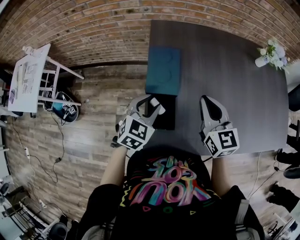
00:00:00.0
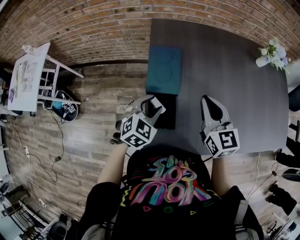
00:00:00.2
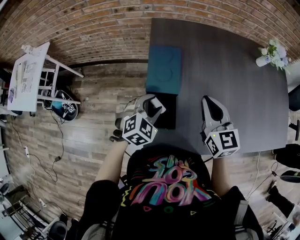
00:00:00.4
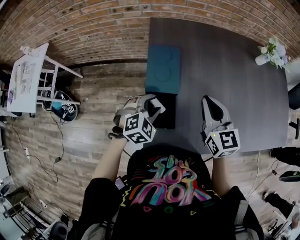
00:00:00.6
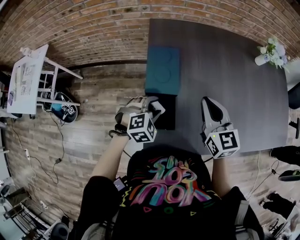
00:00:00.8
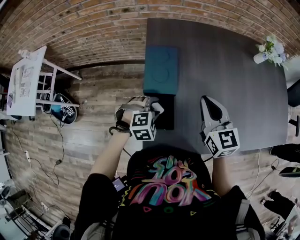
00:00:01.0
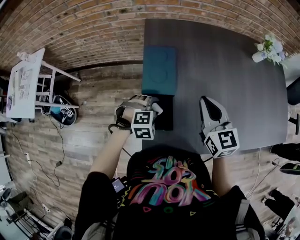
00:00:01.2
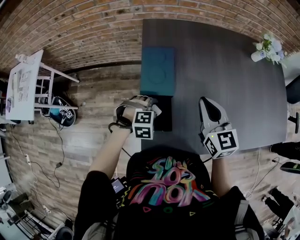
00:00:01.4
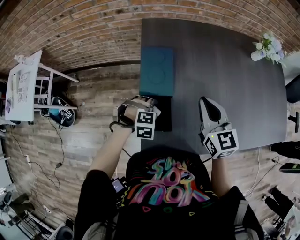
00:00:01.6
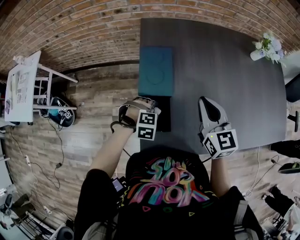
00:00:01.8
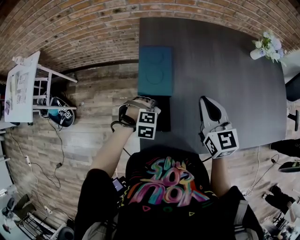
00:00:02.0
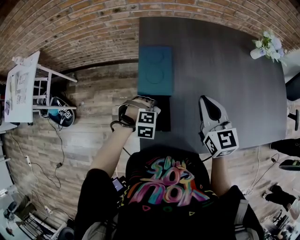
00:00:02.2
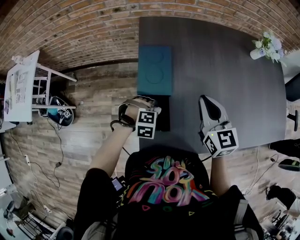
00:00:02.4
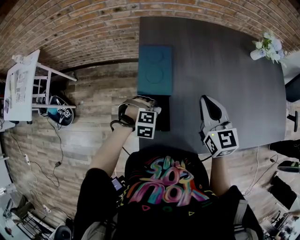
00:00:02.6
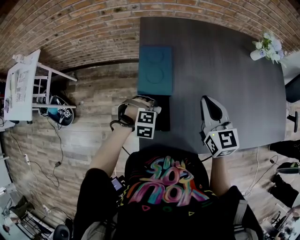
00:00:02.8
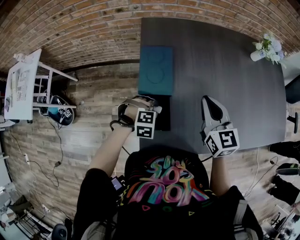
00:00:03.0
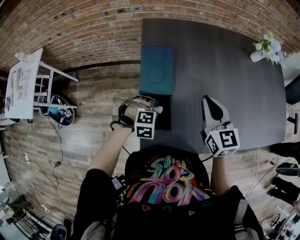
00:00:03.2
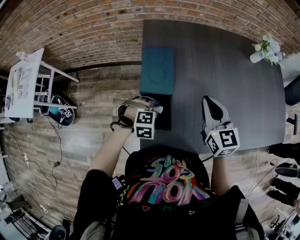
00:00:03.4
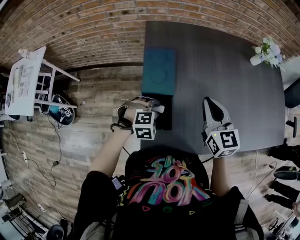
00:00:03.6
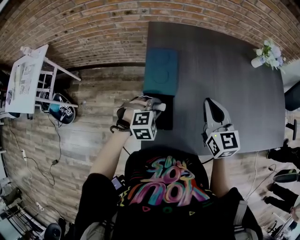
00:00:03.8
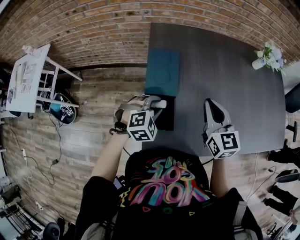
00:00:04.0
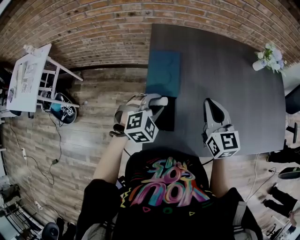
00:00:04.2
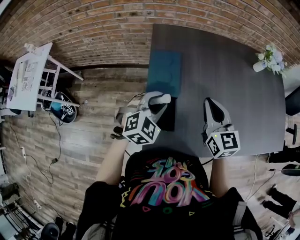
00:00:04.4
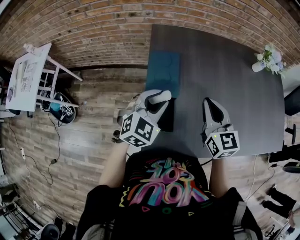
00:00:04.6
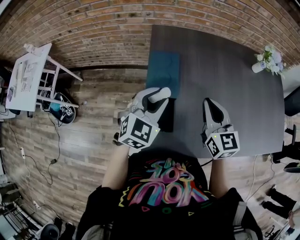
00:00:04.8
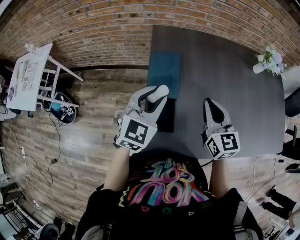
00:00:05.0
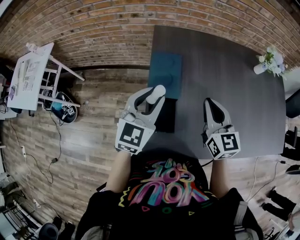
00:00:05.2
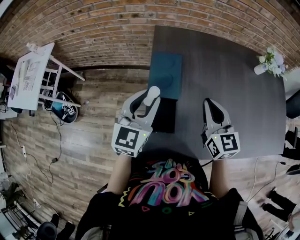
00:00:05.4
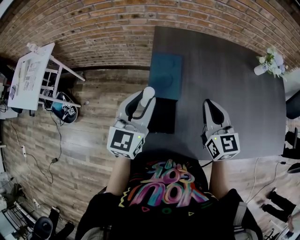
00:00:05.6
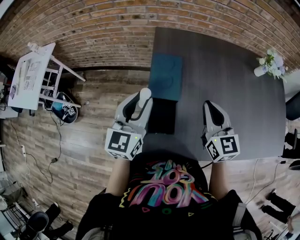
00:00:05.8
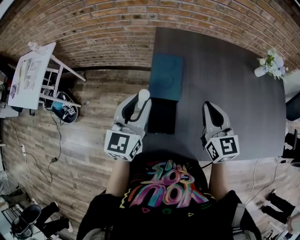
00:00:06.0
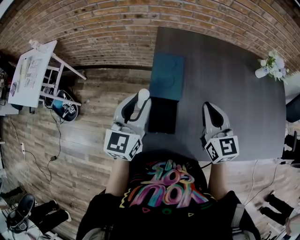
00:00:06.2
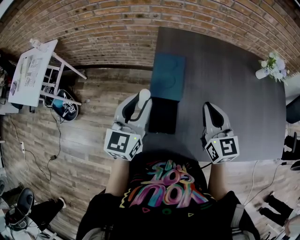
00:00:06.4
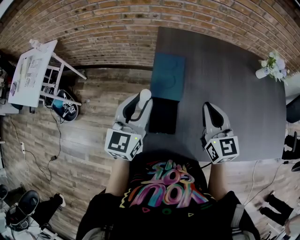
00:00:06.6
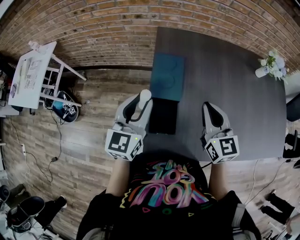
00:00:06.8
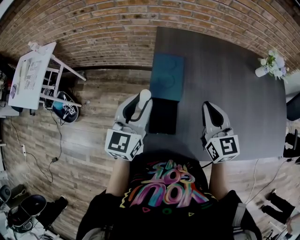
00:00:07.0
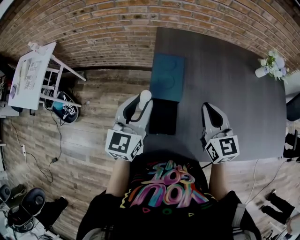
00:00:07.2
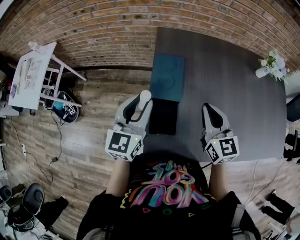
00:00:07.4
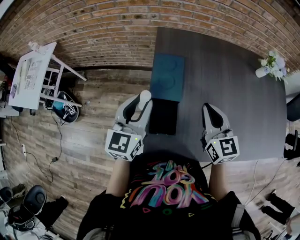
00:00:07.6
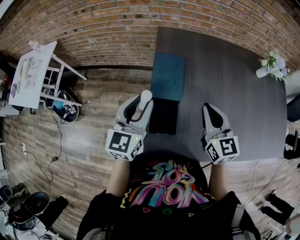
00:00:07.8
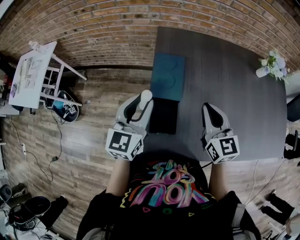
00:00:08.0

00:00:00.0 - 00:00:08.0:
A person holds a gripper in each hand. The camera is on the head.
00:00:00.0 - 00:00:01.6: The left gripper travels downward by some 15 cm, and tips its fingers downward by approximately 40 degrees.
00:00:01.6 - 00:00:03.2: The left gripper closes its fingers.
00:00:03.2 - 00:00:04.8: The left gripper goes approximately 20 cm upward, and angles its fingers upward, by approximately 40 degrees.
00:00:04.8 - 00:00:06.4: The left gripper goes some 10 cm to the left, and changes its angle by about 30 degrees.
00:00:06.4 - 00:00:08.0: Neither gripper changes place.

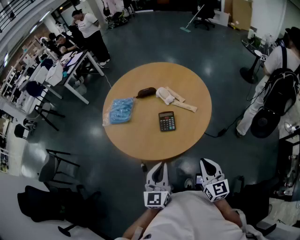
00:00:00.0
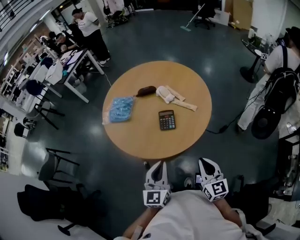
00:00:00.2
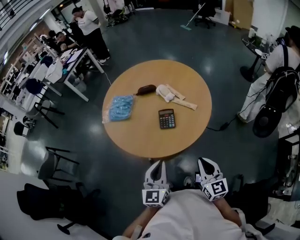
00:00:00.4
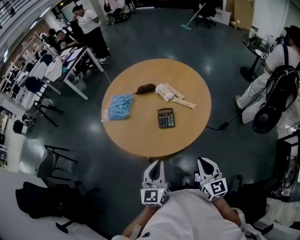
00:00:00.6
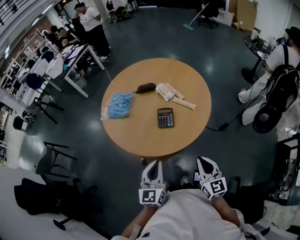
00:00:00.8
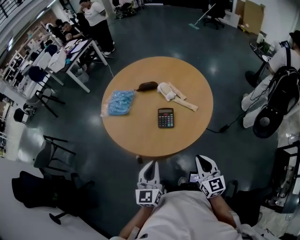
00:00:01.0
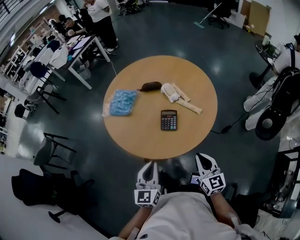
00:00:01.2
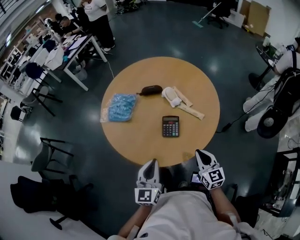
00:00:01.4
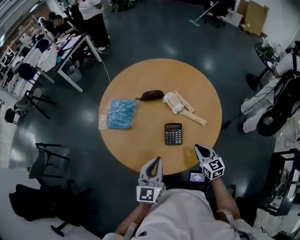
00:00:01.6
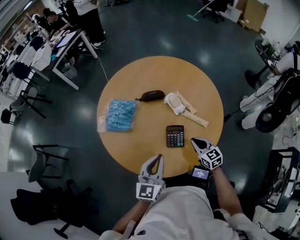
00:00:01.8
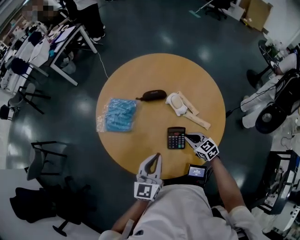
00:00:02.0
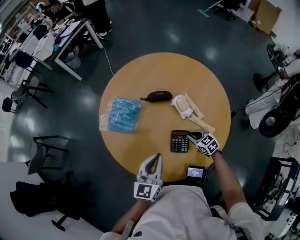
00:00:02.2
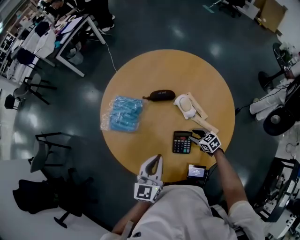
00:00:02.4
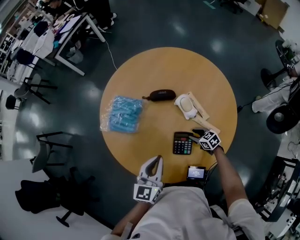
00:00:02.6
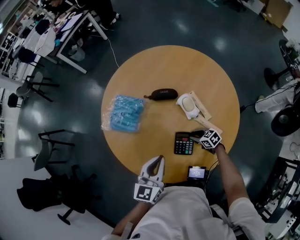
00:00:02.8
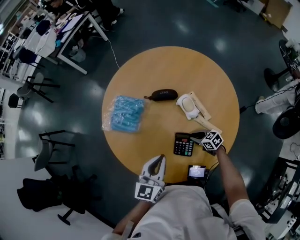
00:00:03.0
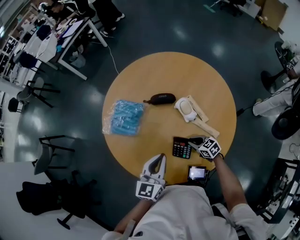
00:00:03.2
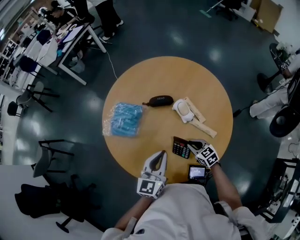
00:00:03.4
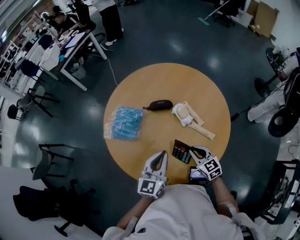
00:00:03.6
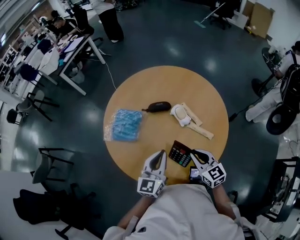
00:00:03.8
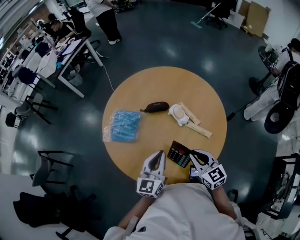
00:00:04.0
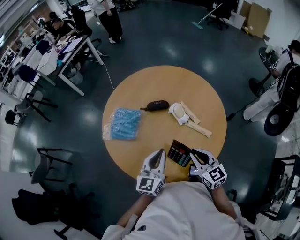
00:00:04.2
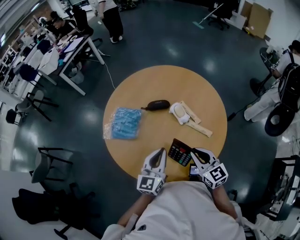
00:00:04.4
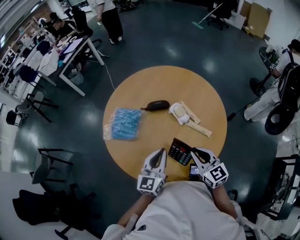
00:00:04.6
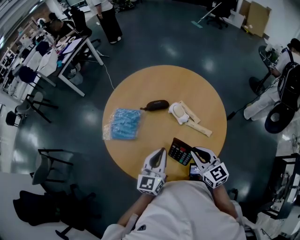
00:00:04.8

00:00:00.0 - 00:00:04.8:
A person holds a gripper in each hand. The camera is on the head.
00:00:00.0 - 00:00:01.6: The right gripper is displaced forward and downward by approximately 25 cm. The left gripper goes some 15 cm forward.
00:00:01.6 - 00:00:03.2: The left gripper changes place by roughly 15 cm; the right gripper shifts by roughly 20 cm, turns by approximately 40 degrees, and opens, then closes again.
00:00:03.2 - 00:00:04.8: The right gripper moves upward, roughly 25 cm, and turns by some 40 degrees.

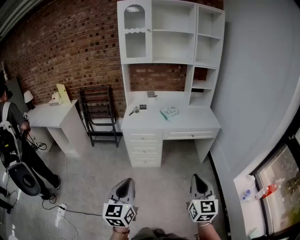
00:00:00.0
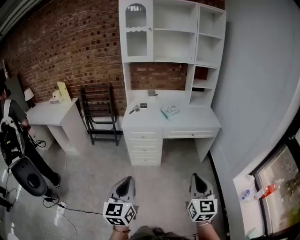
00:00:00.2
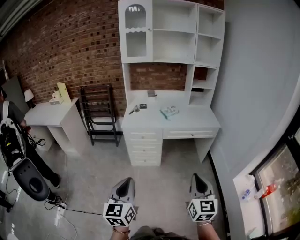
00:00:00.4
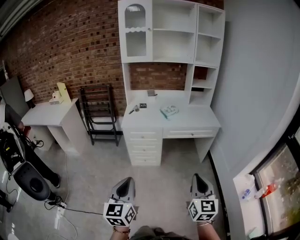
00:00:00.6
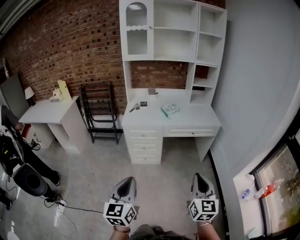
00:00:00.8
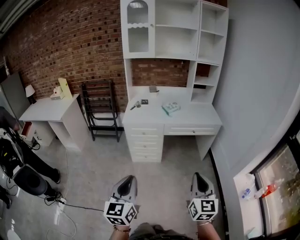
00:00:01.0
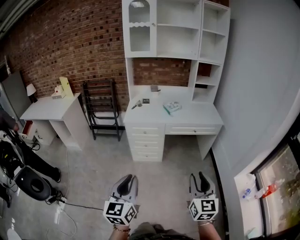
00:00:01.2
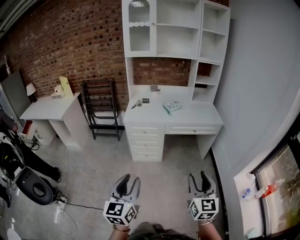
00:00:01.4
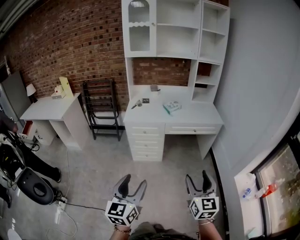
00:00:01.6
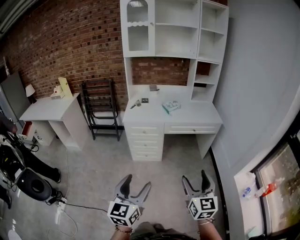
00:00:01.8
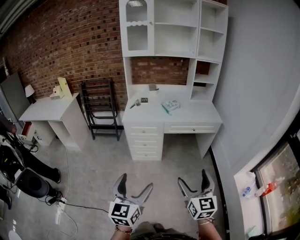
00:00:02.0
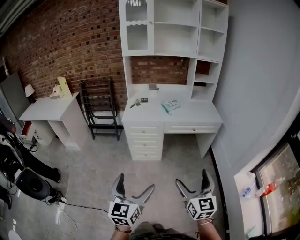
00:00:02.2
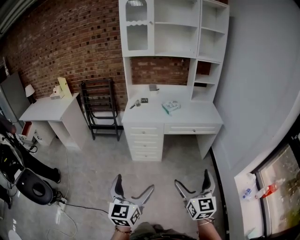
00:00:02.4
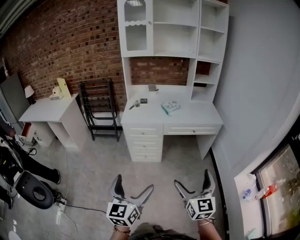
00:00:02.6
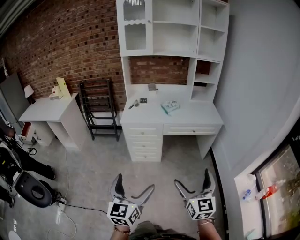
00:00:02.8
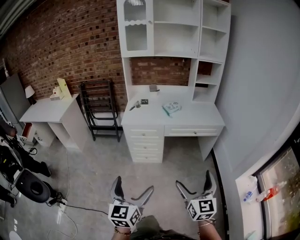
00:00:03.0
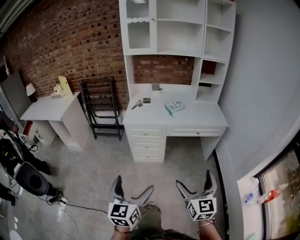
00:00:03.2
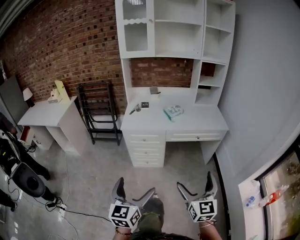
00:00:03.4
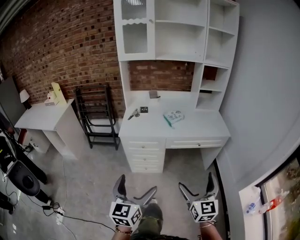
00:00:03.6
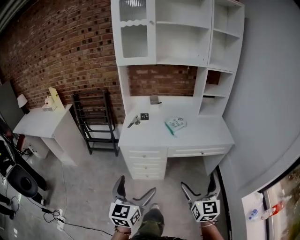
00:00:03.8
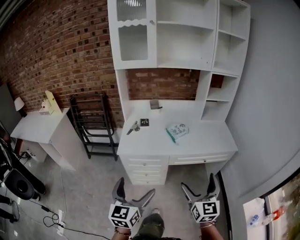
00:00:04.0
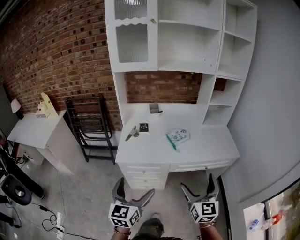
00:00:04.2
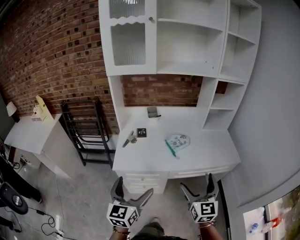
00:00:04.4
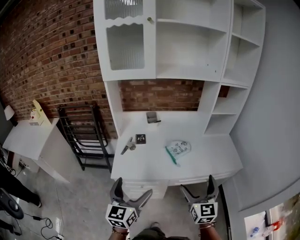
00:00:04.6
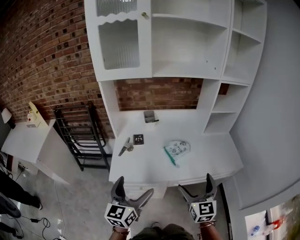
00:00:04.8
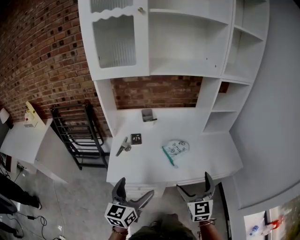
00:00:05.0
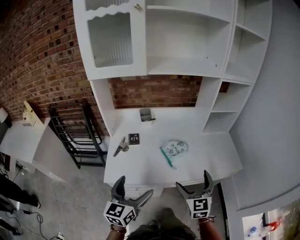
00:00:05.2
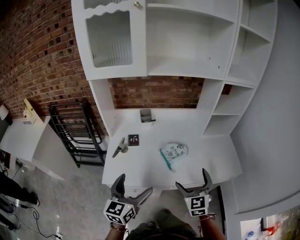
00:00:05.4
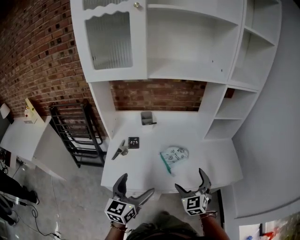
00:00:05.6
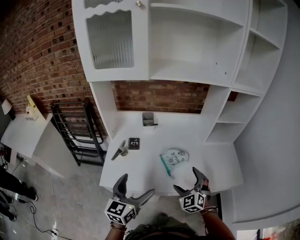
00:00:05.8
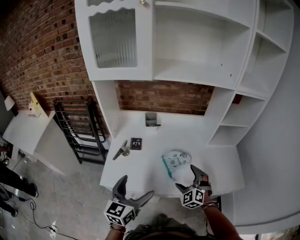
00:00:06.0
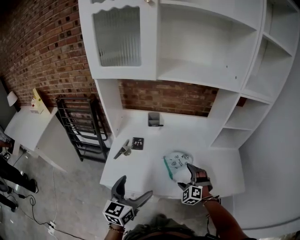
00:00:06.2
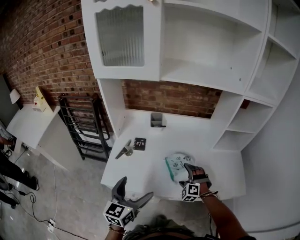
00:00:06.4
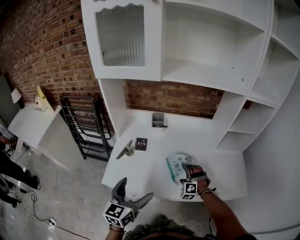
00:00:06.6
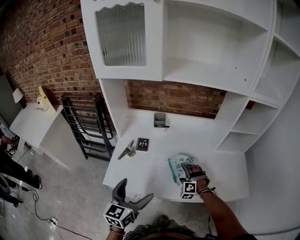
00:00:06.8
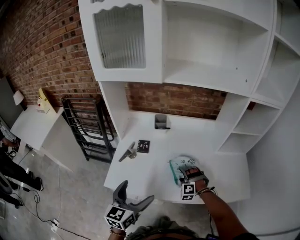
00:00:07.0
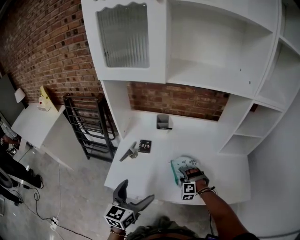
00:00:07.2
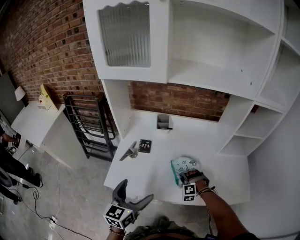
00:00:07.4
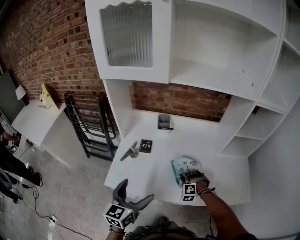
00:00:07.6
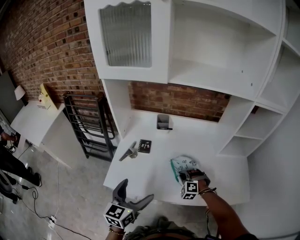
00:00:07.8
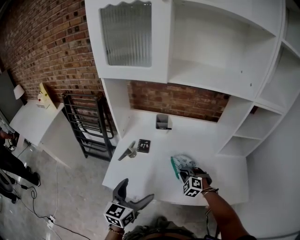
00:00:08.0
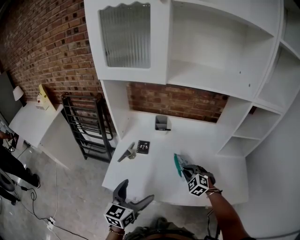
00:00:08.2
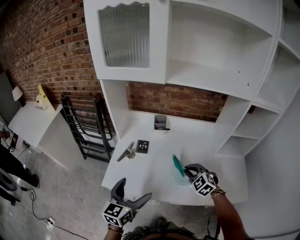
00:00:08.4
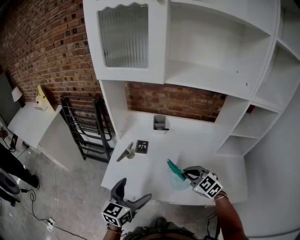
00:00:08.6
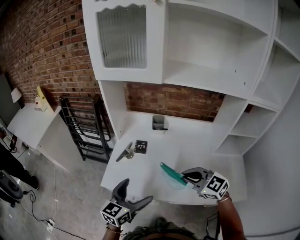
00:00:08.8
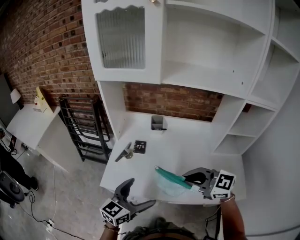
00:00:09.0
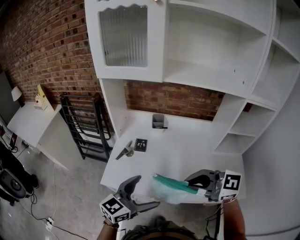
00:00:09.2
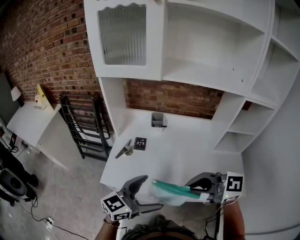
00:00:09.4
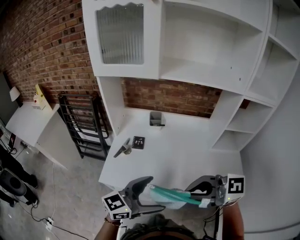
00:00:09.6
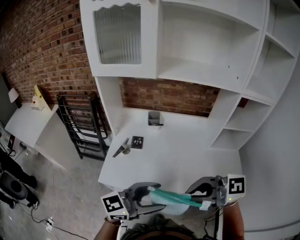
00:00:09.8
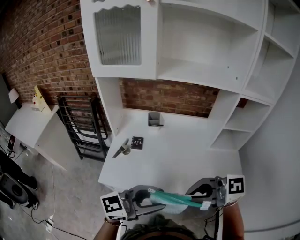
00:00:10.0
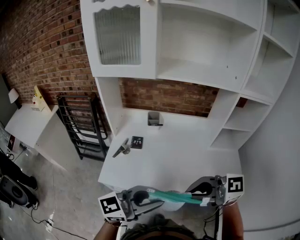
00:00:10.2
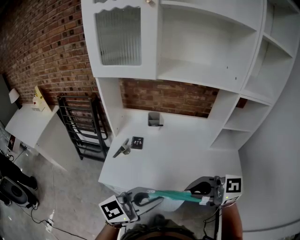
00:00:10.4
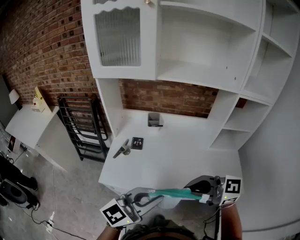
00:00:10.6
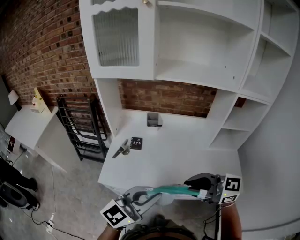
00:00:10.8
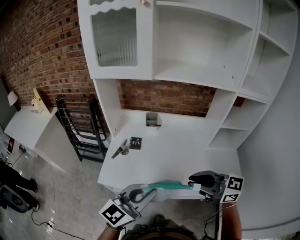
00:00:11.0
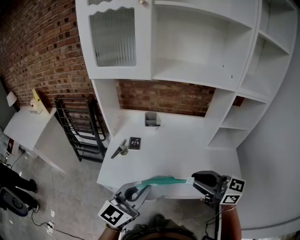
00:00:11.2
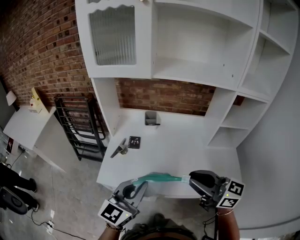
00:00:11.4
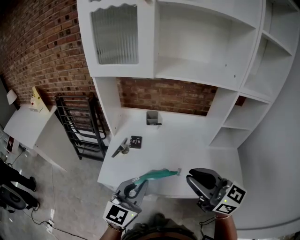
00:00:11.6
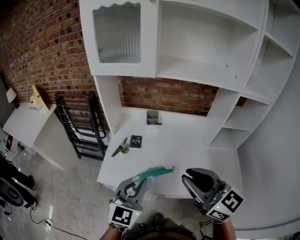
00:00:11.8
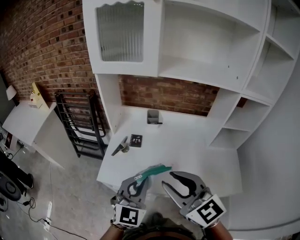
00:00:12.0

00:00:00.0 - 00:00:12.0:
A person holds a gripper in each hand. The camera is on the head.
00:00:00.0 - 00:00:01.6: The left gripper opens its fingers, while the right gripper opens.
00:00:01.6 - 00:00:03.0: Both grippers move forward, approximately 5 cm. The left gripper opens up. Meanwhile the right gripper opens.
00:00:03.0 - 00:00:04.4: The pair of grippers is taken forward, about 40 cm.
00:00:04.4 - 00:00:06.0: The right gripper moves forward and downward, about 30 cm, and rotates around the line of its fingers by some 50 degrees, counterclockwise from behind. The left gripper goes some 20 cm forward.
00:00:06.0 - 00:00:07.6: The right gripper heads downward and forward, covering roughly 15 cm, turns by roughly 40 degrees, and closes up.
00:00:07.6 - 00:00:09.0: The right gripper heads upward, covering approximately 30 cm, and tilts its fingers roughly 30 degrees upward; the left gripper ends up about 5 cm from where it was.
00:00:09.0 - 00:00:10.4: The right gripper ends up approximately 10 cm from where it was. Meanwhile the left gripper moves roughly 15 cm, rotates some 30 degrees, and closes up.
00:00:10.4 - 00:00:12.0: The right gripper moves roughly 10 cm, and changes its angle by roughly 40 degrees, while the left gripper changes place by approximately 10 cm, and swivels about 50 degrees.
